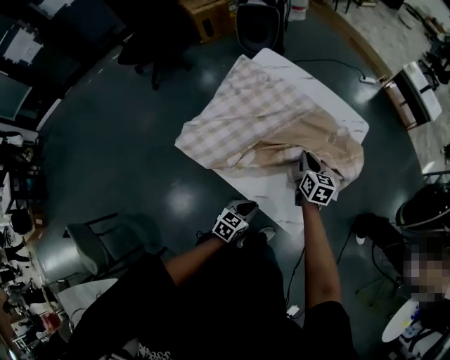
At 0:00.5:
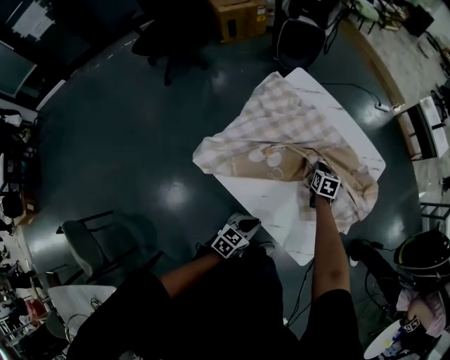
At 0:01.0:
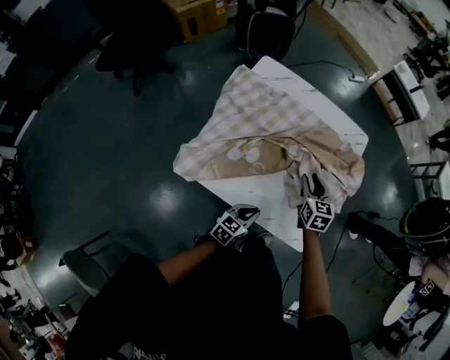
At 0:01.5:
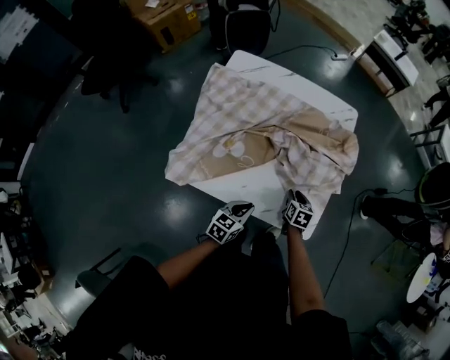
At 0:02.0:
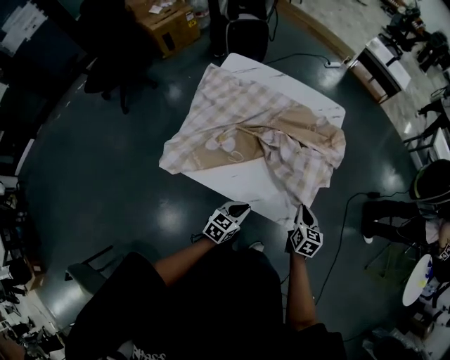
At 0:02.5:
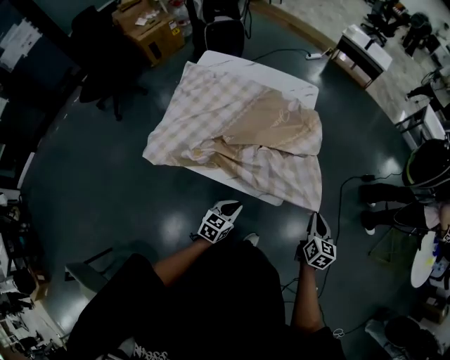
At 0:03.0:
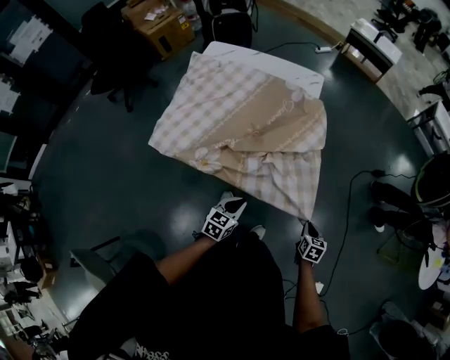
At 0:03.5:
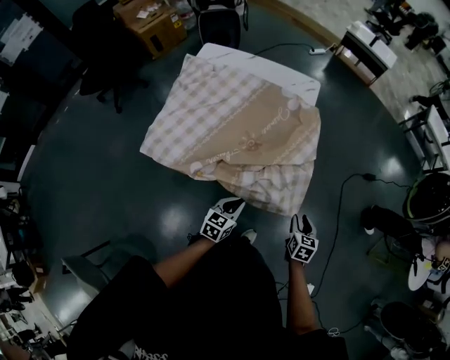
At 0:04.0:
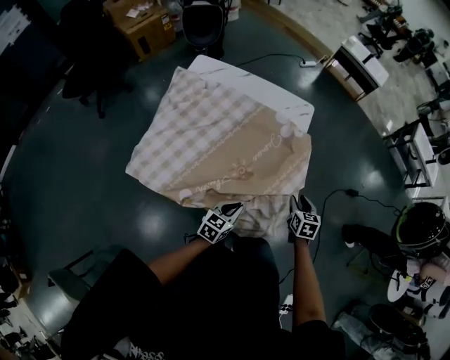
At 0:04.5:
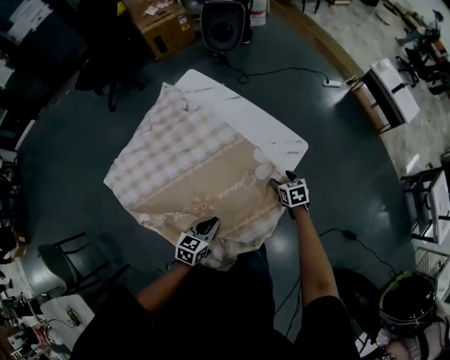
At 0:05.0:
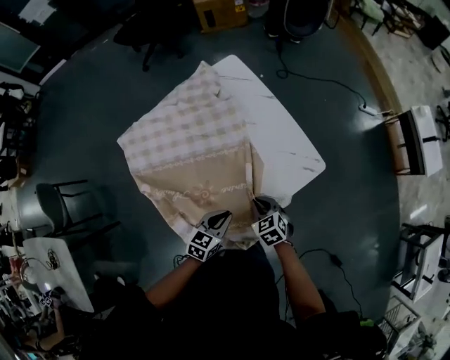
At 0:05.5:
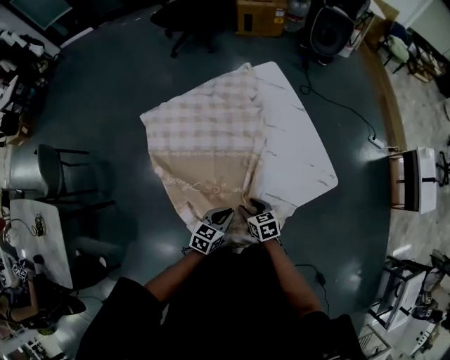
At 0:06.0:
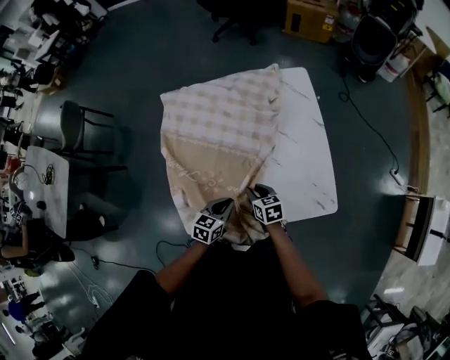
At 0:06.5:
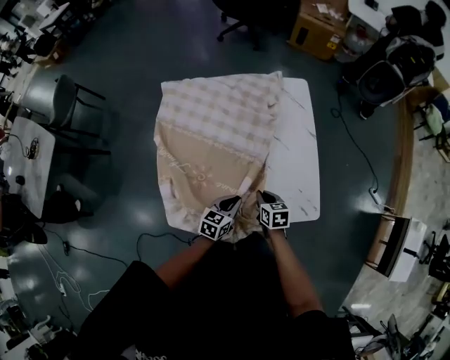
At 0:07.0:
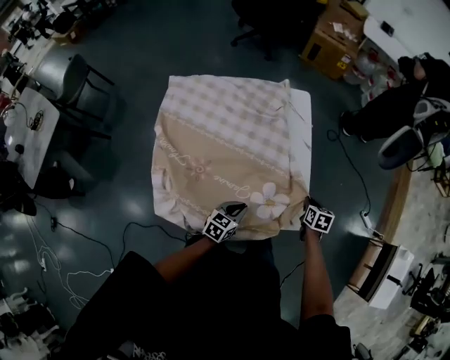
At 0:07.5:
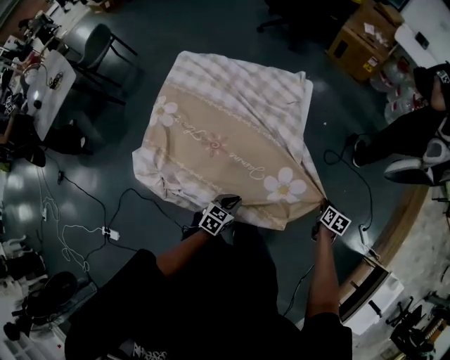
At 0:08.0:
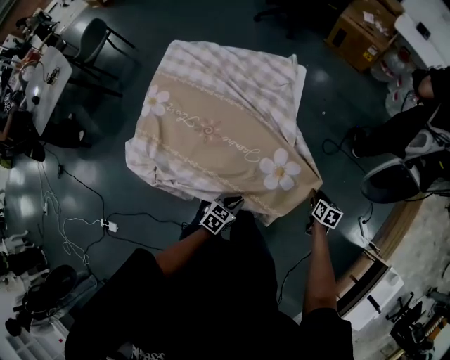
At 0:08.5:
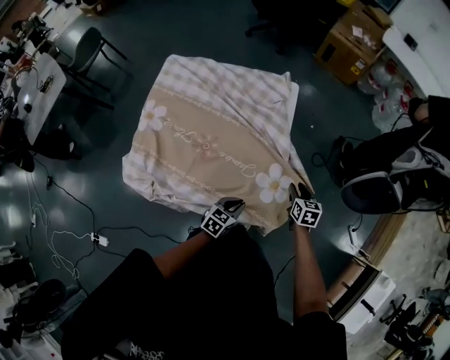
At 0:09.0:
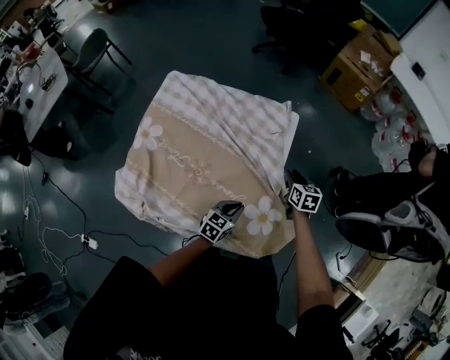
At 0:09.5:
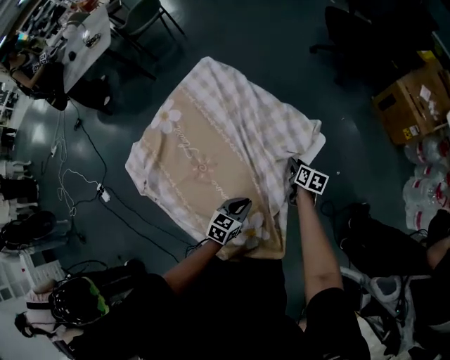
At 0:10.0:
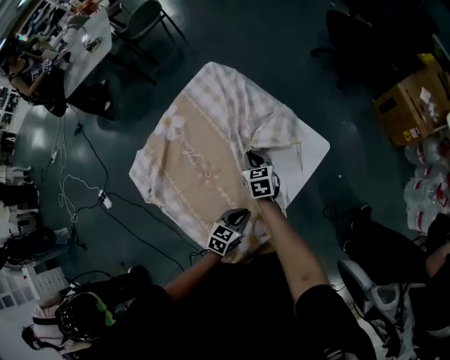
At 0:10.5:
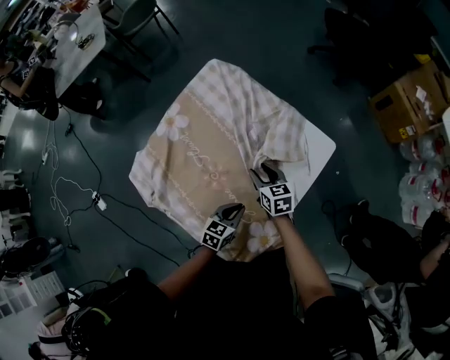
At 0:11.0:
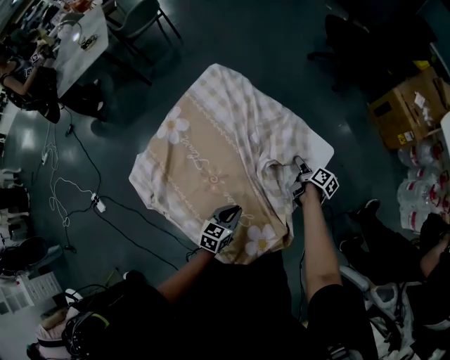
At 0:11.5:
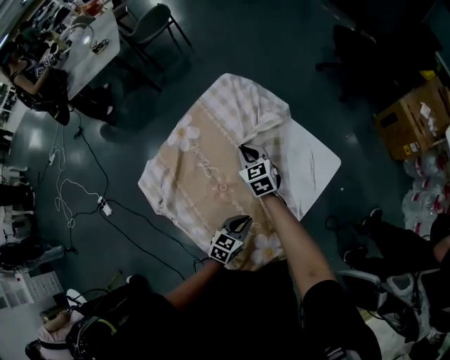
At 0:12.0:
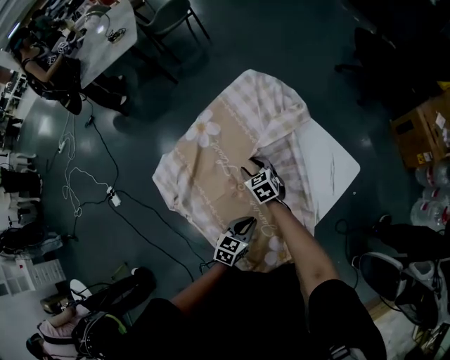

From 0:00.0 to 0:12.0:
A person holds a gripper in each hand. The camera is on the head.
From 0:00.0 to 0:02.0: The right gripper is displaced backward and to the right by roughly 20 cm, swivels some 20 degrees, and opens and closes again. The left gripper reaches some 10 cm to the left, then returns.
From 0:02.0 to 0:04.0: The left gripper is displaced to the right and forward by some 10 cm, while the right gripper travels forward and to the right by some 15 cm, and opens up.
From 0:04.0 to 0:06.0: The left gripper moves some 20 cm, and rotates approximately 70 degrees; the right gripper ends up approximately 25 cm from where it was, turns by approximately 90 degrees, and opens, then closes once more.
From 0:06.0 to 0:08.0: The left gripper shifts approximately 25 cm to the right. Meanwhile the right gripper goes some 40 cm to the right, and closes and opens again.
From 0:08.0 to 0:10.0: The right gripper moves up and down over some 10 cm, changing direction 2 times, twists about 50 degrees counterclockwise, seen from behind, and closes; the left gripper changes place by some 25 cm, and swivels approximately 40 degrees.
From 0:10.0 to 0:12.0: Both grippers travel together to the left, roughly 15 cm. The right gripper changes its angle by approximately 20 degrees, and opens.

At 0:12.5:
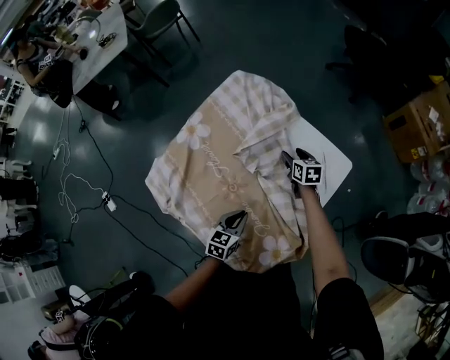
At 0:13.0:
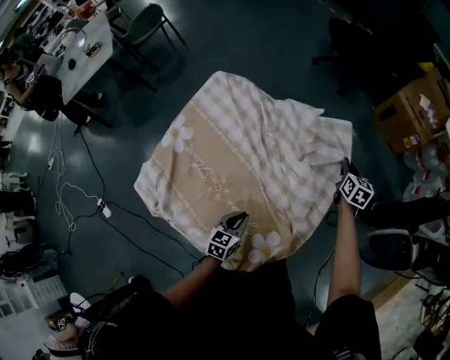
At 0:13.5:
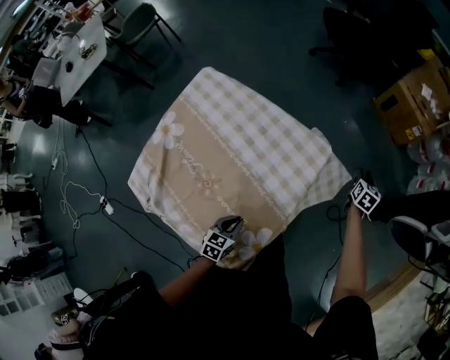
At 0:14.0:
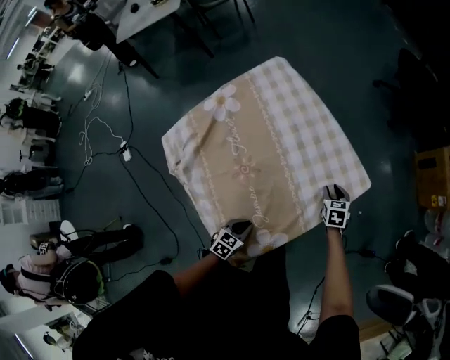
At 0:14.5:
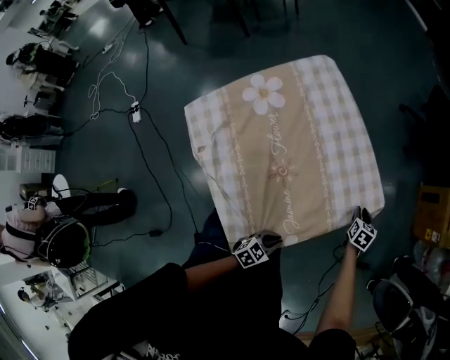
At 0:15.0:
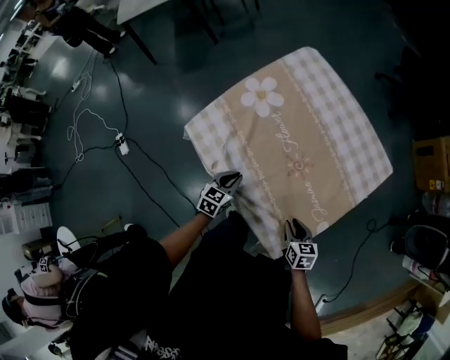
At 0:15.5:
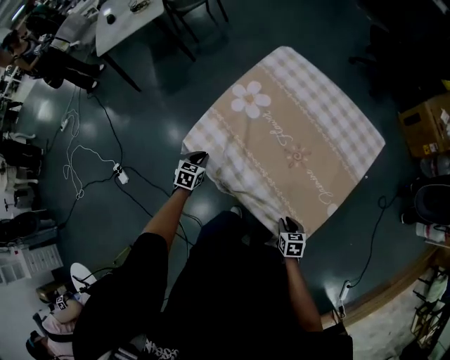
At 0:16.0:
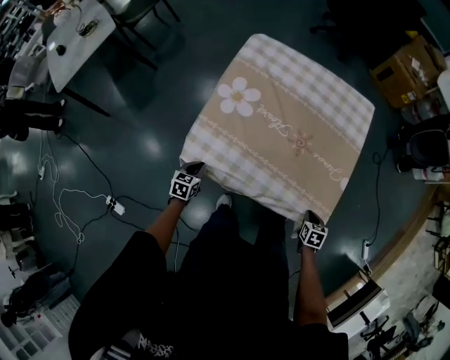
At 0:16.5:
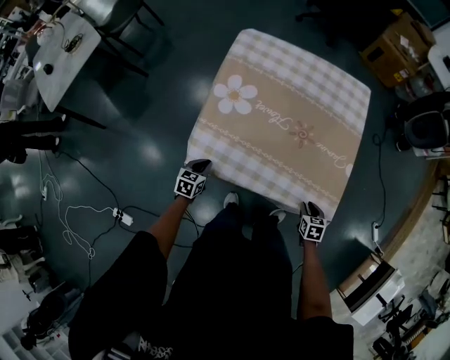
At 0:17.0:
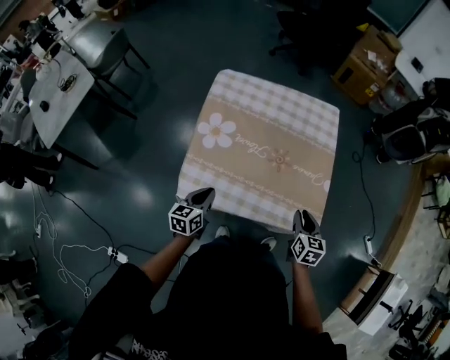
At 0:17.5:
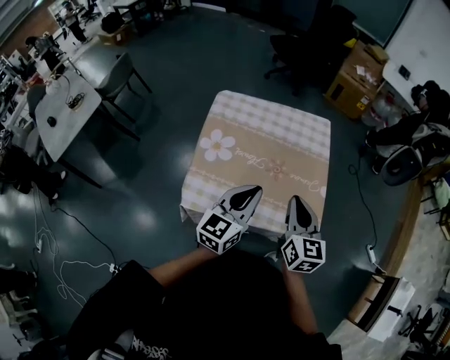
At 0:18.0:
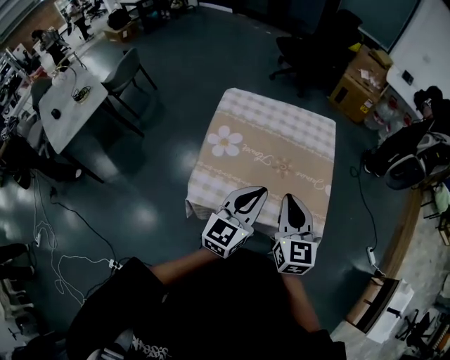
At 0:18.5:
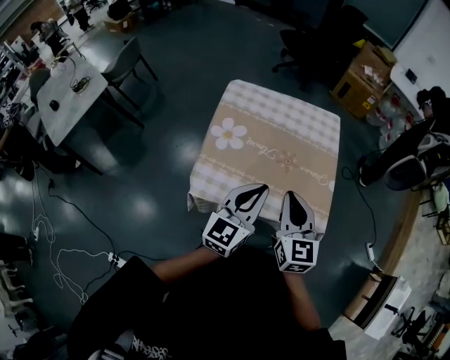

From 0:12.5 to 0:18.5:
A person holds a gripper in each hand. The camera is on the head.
From 0:12.5 to 0:14.5: The right gripper goes upward and returns, some 10 cm each way, turns by roughly 20 degrees, and closes; the left gripper ends up about 20 cm from where it was.
From 0:14.5 to 0:16.5: The right gripper moves roughly 50 cm, changes its angle by some 30 degrees, and closes, then reopens. Meanwhile the left gripper changes place by some 60 cm, and swivels roughly 20 degrees.
From 0:16.5 to 0:18.5: The left gripper goes about 40 cm upward, and tips its fingers upward by some 50 degrees, while the right gripper travels upward and to the left by some 50 cm, tips its fingers upward by some 50 degrees, and closes.

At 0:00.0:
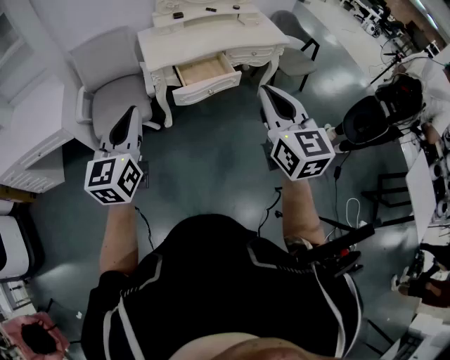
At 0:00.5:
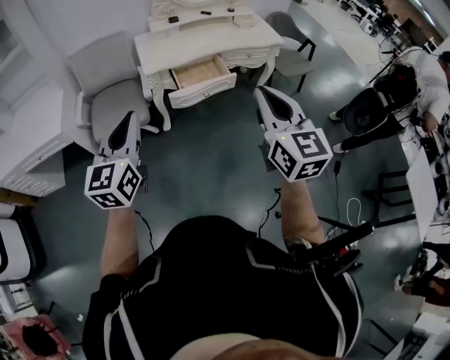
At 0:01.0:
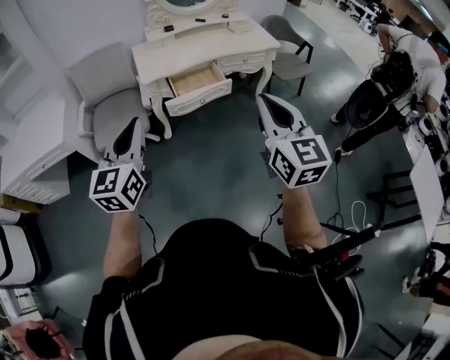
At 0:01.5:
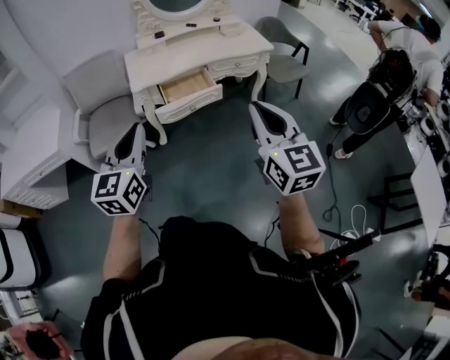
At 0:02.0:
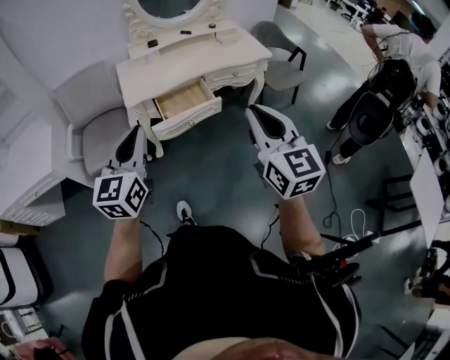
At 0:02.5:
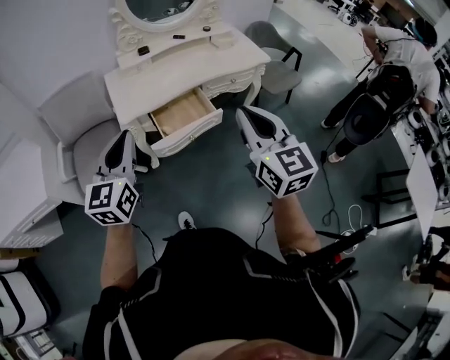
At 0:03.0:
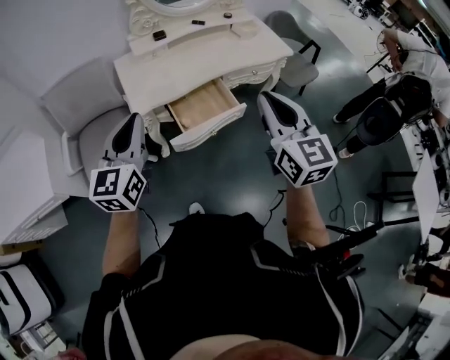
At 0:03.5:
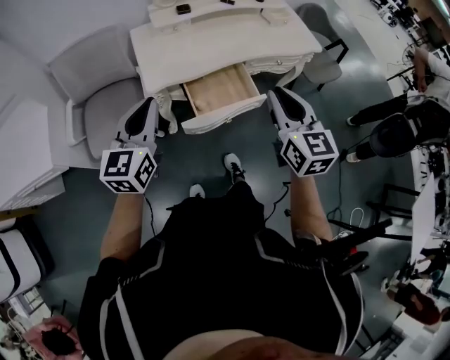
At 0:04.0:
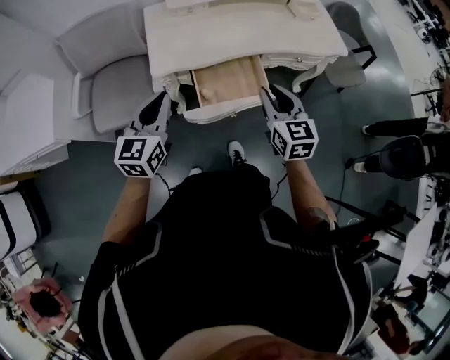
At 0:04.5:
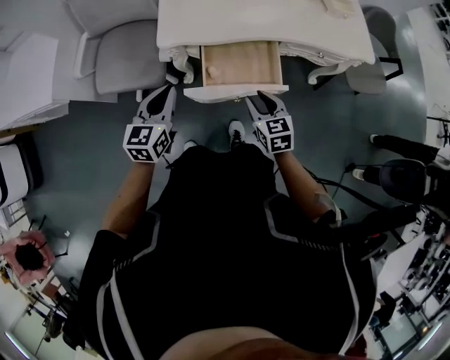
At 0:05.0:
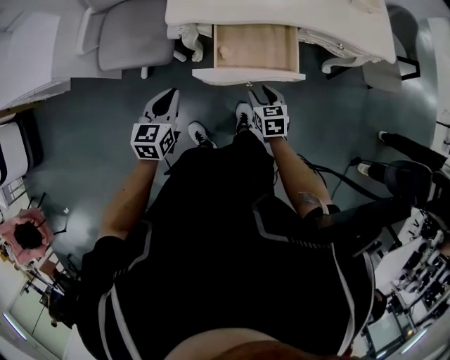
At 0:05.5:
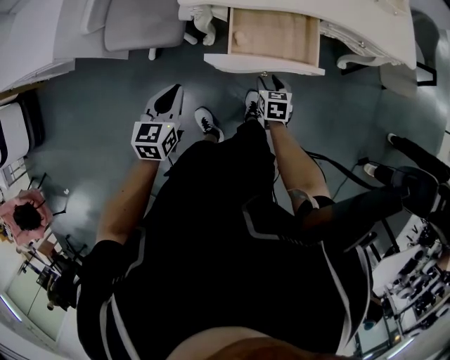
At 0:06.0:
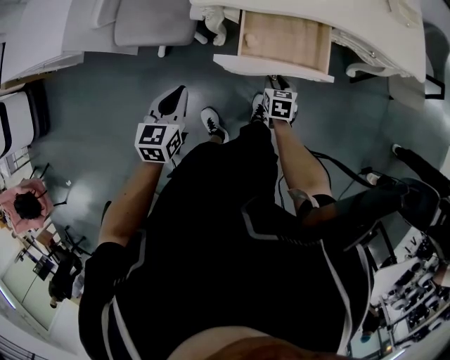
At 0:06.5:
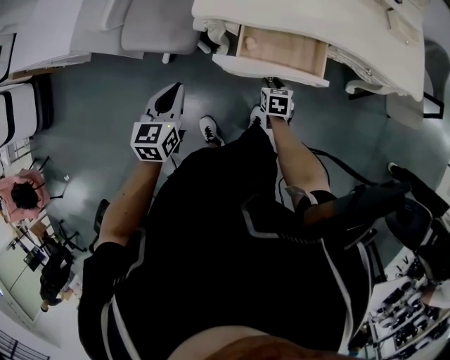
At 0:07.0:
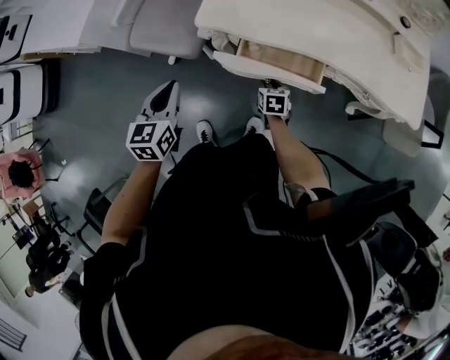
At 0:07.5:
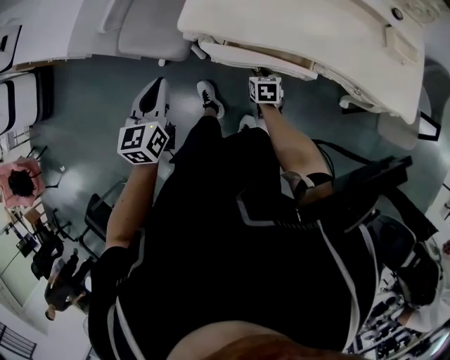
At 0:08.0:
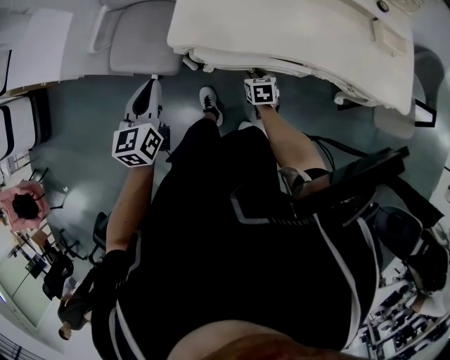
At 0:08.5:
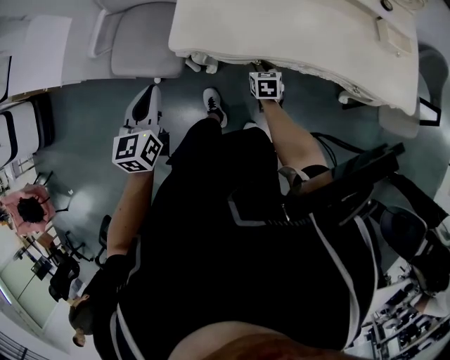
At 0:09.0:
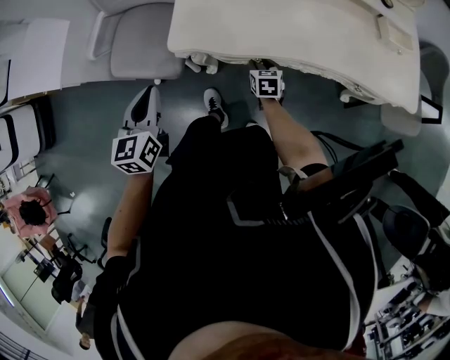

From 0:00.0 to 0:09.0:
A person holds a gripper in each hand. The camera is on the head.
From 0:00.0 to 0:02.0: The two grippers go about 15 cm to the right and forward.
From 0:02.0 to 0:04.5: The left gripper heads forward and downward, covering some 35 cm, and turns by approximately 20 degrees. The right gripper goes about 50 cm downward and forward, points its fingers approximately 30 degrees further downward, and opens up.
From 0:04.5 to 0:07.0: The left gripper moves roughly 10 cm downward and comes back, and changes its angle by about 30 degrees. Meanwhile the right gripper shifts roughly 25 cm downward and forward, and turns by about 20 degrees.
From 0:07.0 to 0:09.0: Both grippers travel together forward, some 10 cm.
